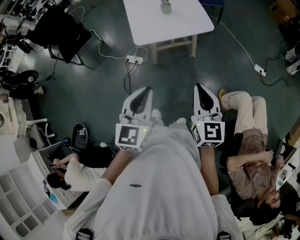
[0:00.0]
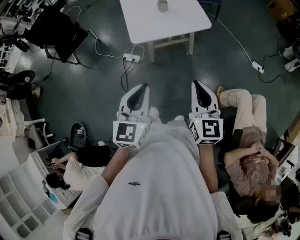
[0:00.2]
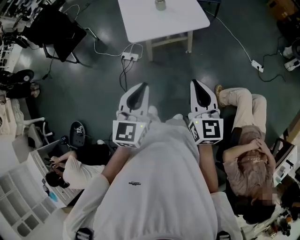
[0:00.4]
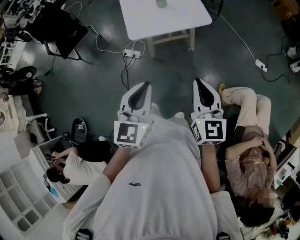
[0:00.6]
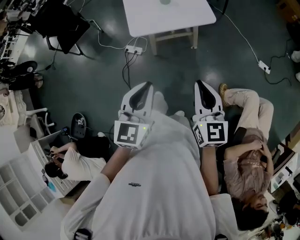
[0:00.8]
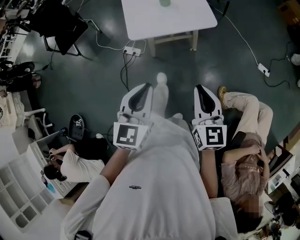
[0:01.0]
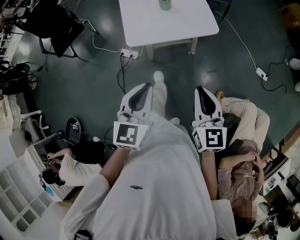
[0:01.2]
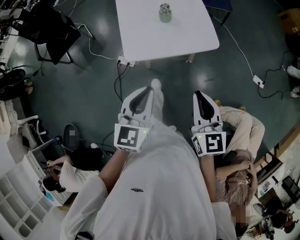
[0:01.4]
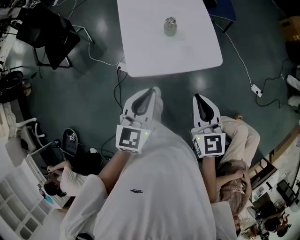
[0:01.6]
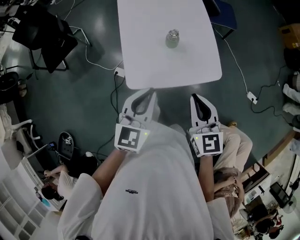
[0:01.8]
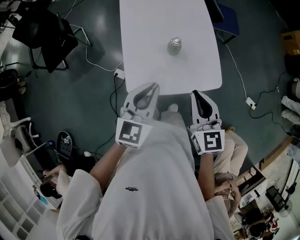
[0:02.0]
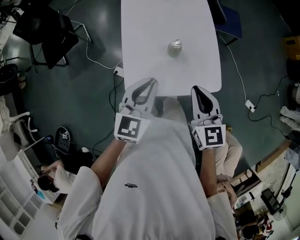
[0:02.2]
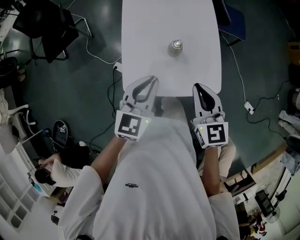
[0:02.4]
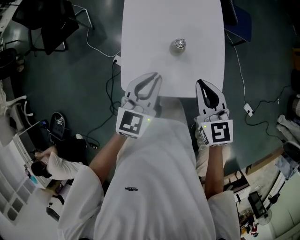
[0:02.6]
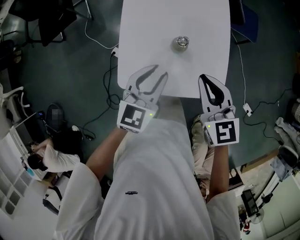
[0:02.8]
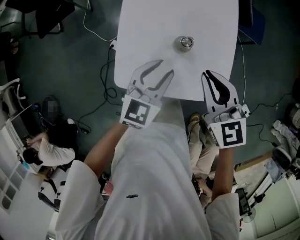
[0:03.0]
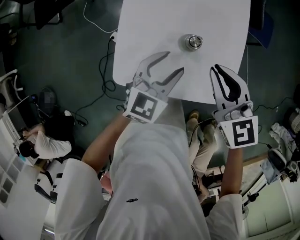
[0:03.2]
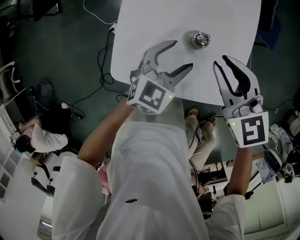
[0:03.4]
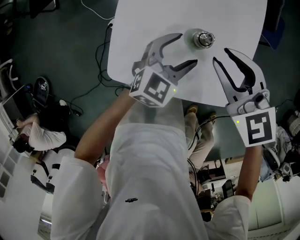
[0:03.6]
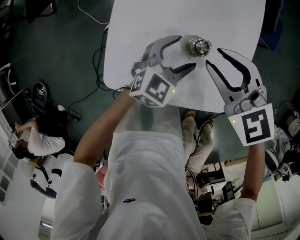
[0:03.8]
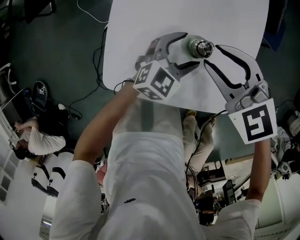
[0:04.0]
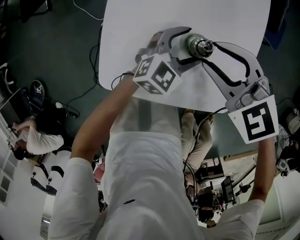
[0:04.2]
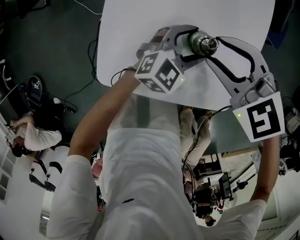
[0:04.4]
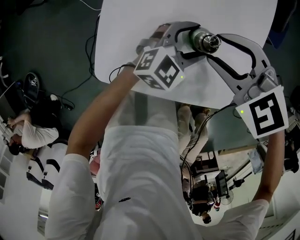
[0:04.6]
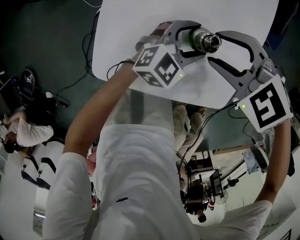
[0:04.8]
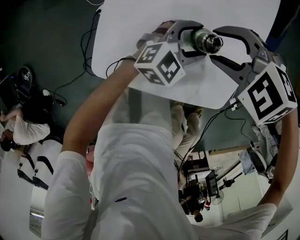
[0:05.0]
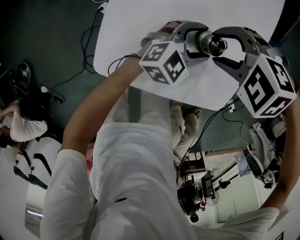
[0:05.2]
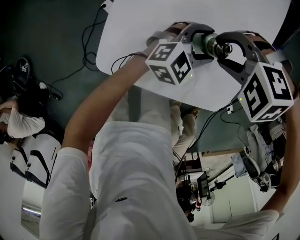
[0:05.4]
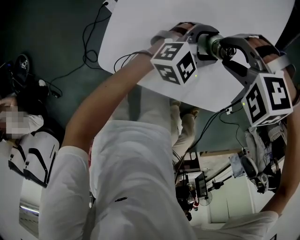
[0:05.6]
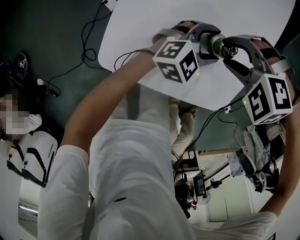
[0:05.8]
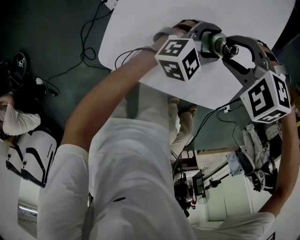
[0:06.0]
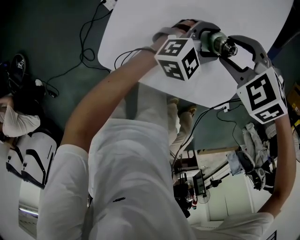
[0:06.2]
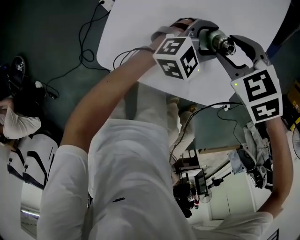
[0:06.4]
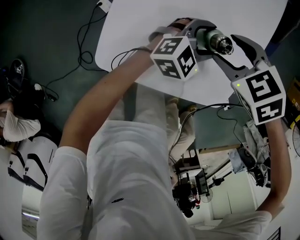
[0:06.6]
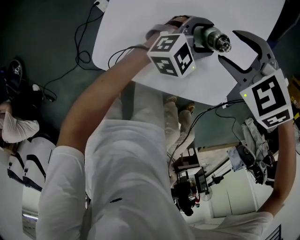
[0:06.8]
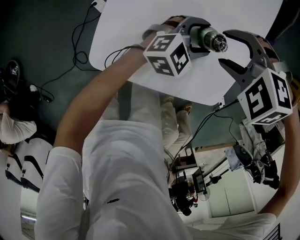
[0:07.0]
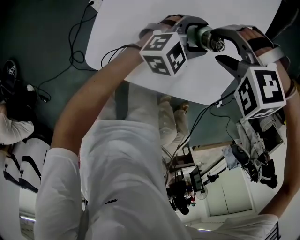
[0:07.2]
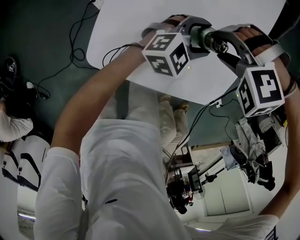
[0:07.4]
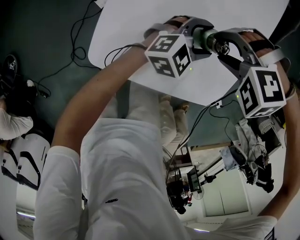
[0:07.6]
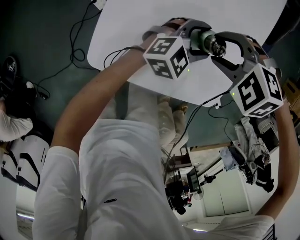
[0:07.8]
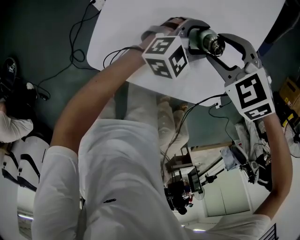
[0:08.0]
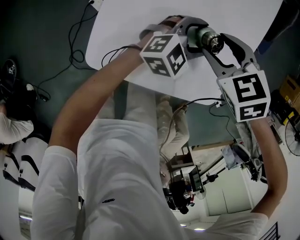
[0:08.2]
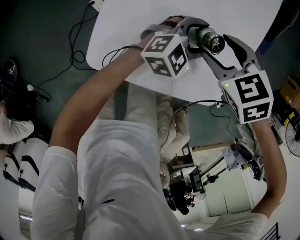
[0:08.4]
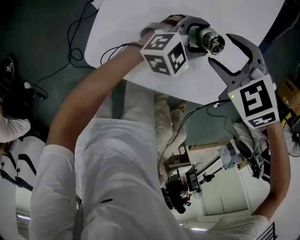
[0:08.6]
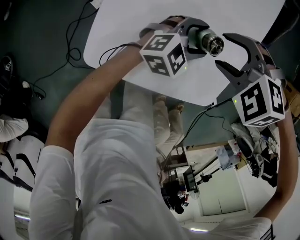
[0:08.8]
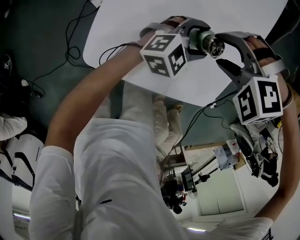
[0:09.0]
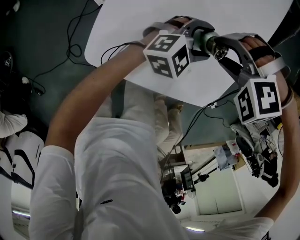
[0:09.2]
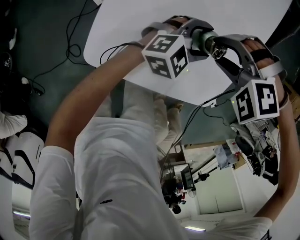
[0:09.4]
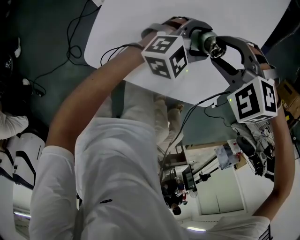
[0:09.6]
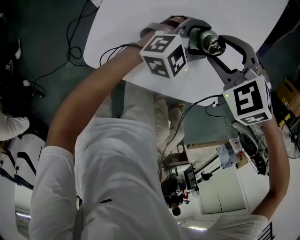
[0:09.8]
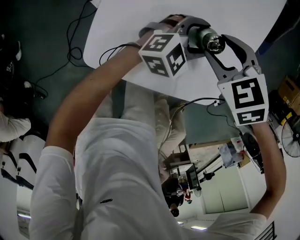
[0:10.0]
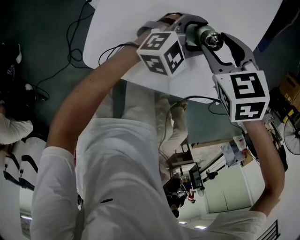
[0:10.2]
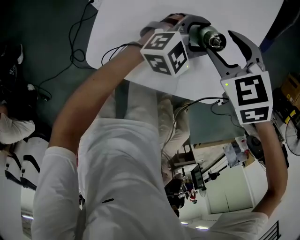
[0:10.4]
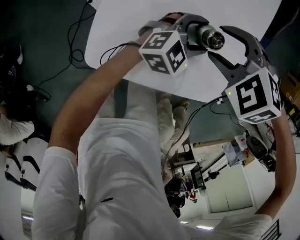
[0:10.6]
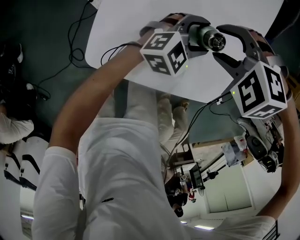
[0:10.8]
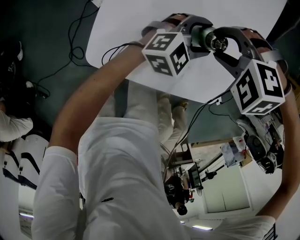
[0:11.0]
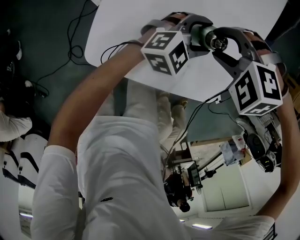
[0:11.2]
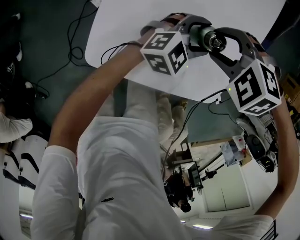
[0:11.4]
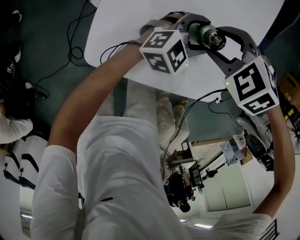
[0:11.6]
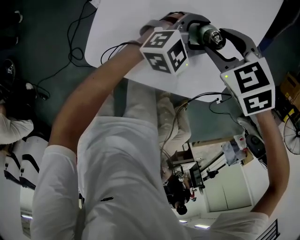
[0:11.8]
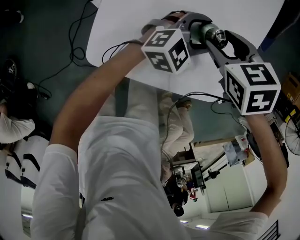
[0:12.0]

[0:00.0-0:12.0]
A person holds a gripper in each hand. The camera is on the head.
0:00.0 to 0:01.6: Both grippers move forward, about 30 cm.
0:01.6 to 0:03.0: Both grippers move forward, about 25 cm. The right gripper swivels some 30 degrees.
0:03.0 to 0:04.4: The right gripper is displaced downward and forward by roughly 15 cm, rotates approximately 40 degrees, and opens up. Meanwhile the left gripper goes approximately 20 cm downward, forward and to the right, changes its angle by approximately 20 degrees, and opens its fingers.
0:04.4 to 0:06.0: The right gripper shifts approximately 5 cm downward, and changes its angle by approximately 40 degrees.
0:06.0 to 0:07.6: The right gripper turns by about 20 degrees.
0:09.0 to 0:10.4: The right gripper twists some 60 degrees clockwise, seen from behind.

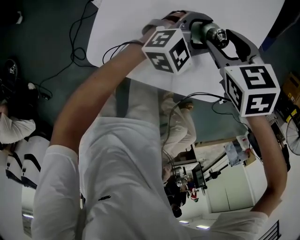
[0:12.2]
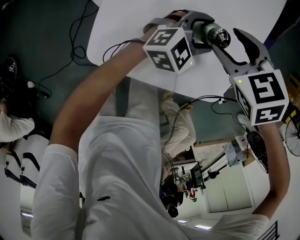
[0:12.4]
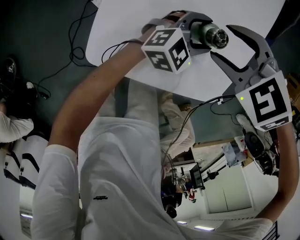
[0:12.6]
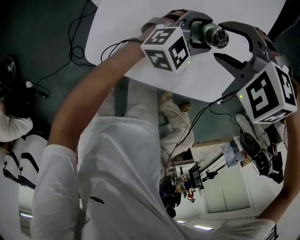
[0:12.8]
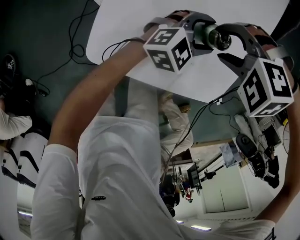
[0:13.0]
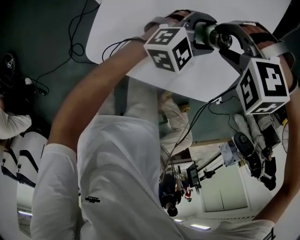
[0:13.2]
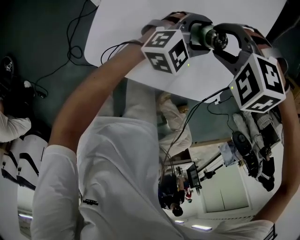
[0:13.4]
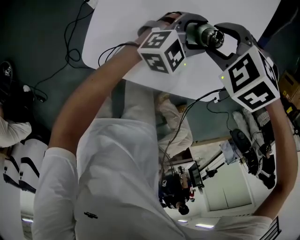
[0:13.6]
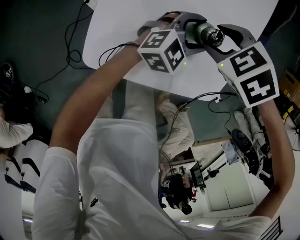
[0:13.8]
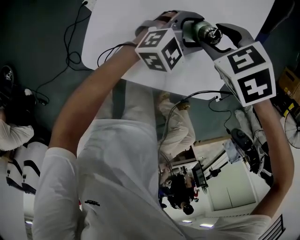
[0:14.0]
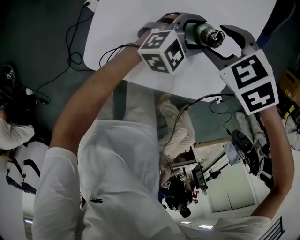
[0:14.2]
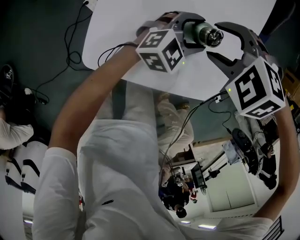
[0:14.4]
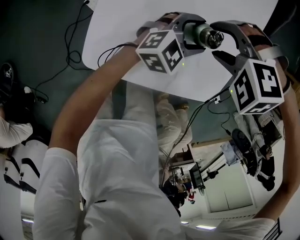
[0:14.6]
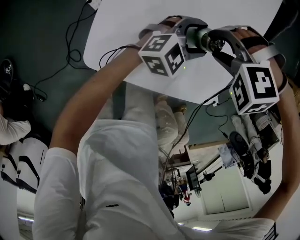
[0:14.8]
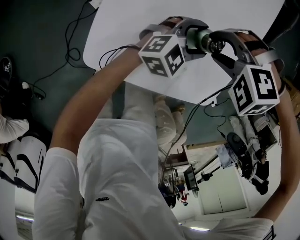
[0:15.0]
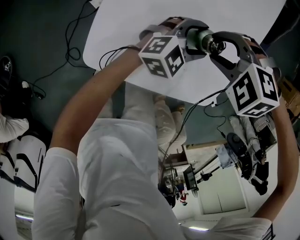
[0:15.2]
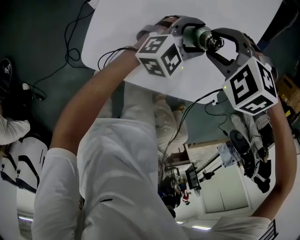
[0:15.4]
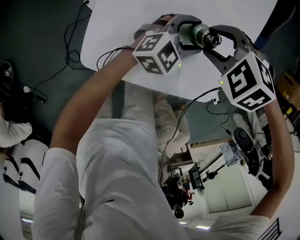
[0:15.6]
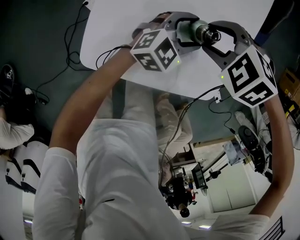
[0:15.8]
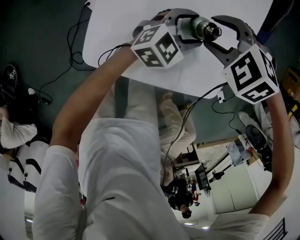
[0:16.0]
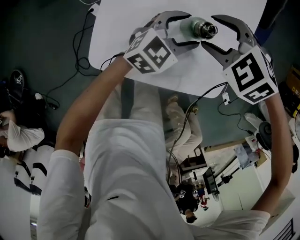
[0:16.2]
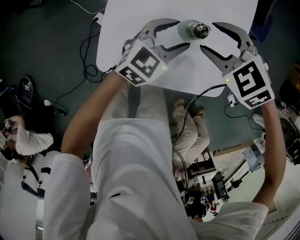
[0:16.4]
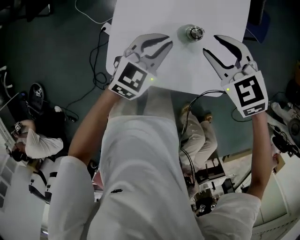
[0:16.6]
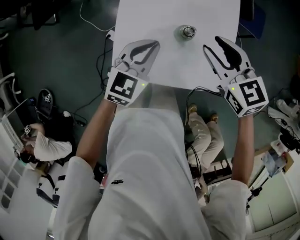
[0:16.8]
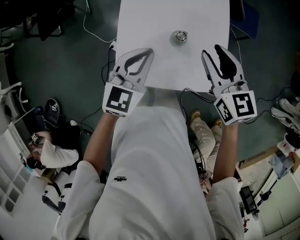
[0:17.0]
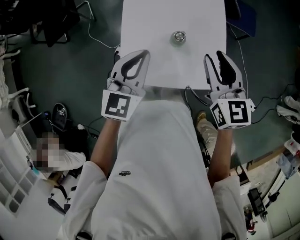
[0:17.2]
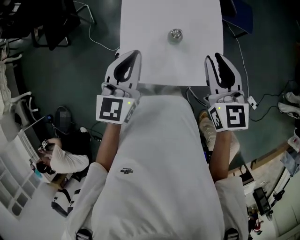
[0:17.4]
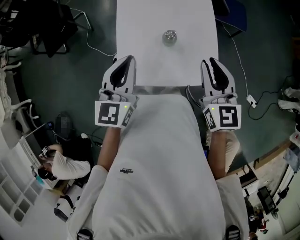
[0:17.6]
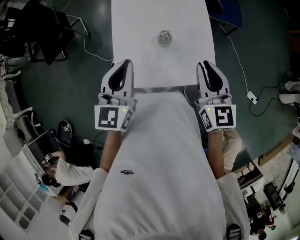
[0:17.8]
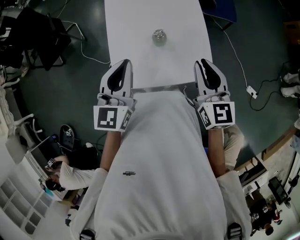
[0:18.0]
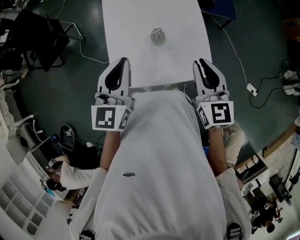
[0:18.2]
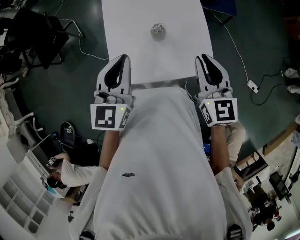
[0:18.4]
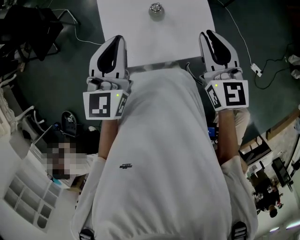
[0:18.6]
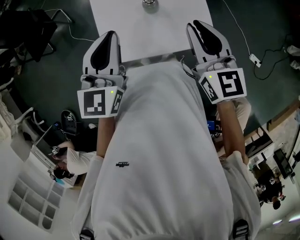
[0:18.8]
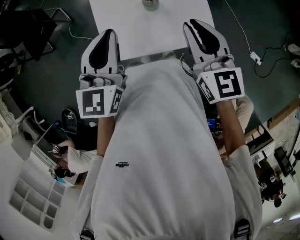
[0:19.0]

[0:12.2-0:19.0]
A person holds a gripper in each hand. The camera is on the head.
0:12.2 to 0:13.6: The right gripper changes its angle by about 40 degrees.
0:13.6 to 0:15.0: The right gripper changes its angle by some 30 degrees.
0:15.0 to 0:16.2: The right gripper rotates about 40 degrees.
0:16.2 to 0:17.6: The right gripper moves upward and backward, approximately 30 cm, tips its fingers upward by about 60 degrees, and closes, while the left gripper heads upward, to the left and backward, covering some 35 cm, swivels about 30 degrees, and closes.
0:17.6 to 0:19.0: The grippers make only small movements.

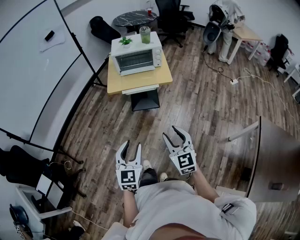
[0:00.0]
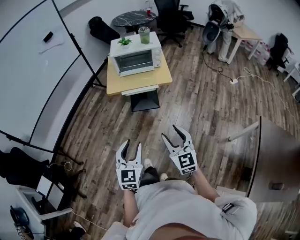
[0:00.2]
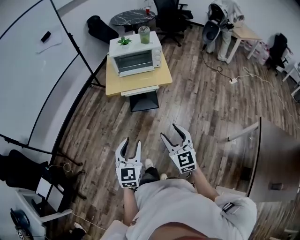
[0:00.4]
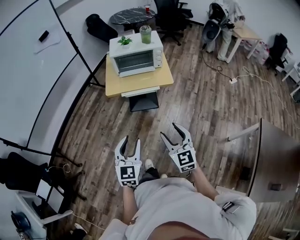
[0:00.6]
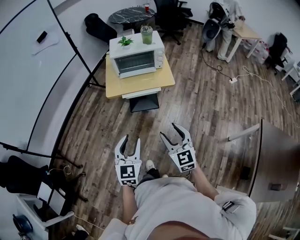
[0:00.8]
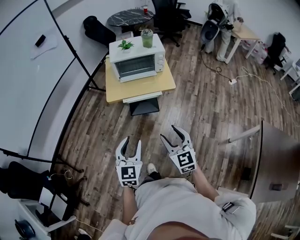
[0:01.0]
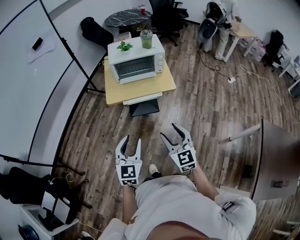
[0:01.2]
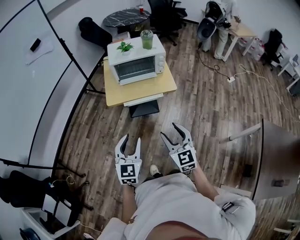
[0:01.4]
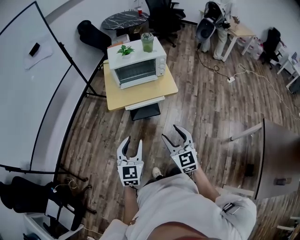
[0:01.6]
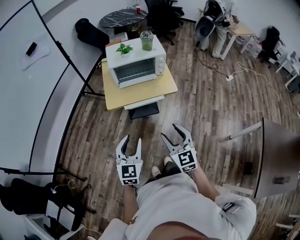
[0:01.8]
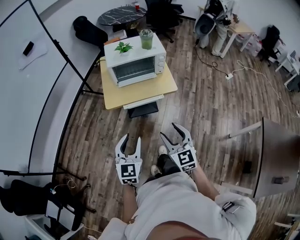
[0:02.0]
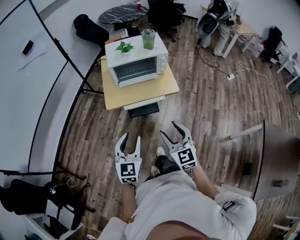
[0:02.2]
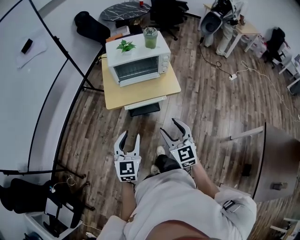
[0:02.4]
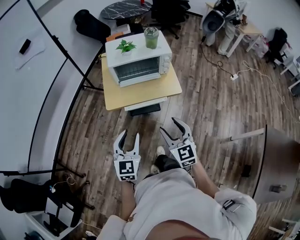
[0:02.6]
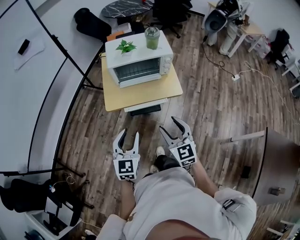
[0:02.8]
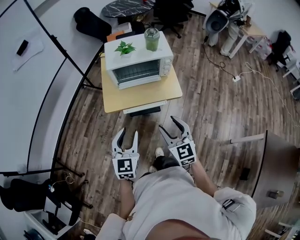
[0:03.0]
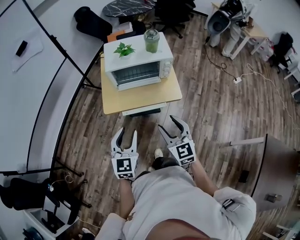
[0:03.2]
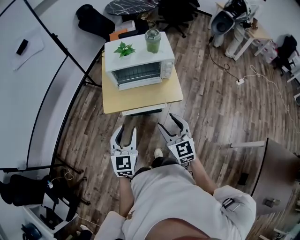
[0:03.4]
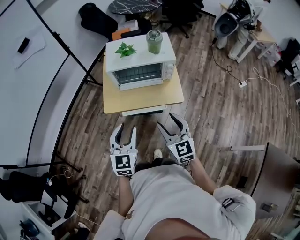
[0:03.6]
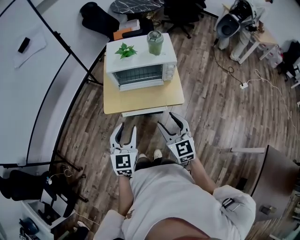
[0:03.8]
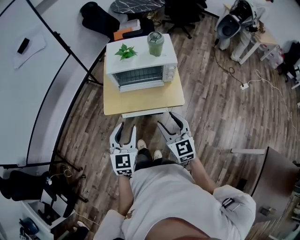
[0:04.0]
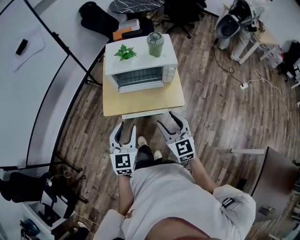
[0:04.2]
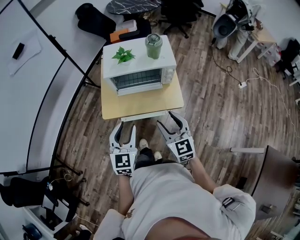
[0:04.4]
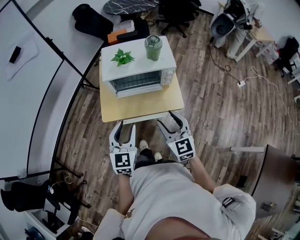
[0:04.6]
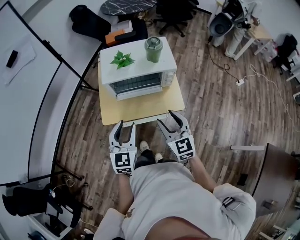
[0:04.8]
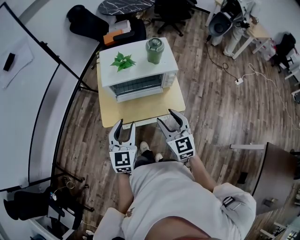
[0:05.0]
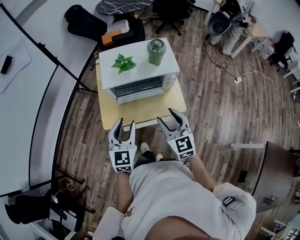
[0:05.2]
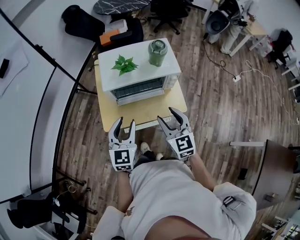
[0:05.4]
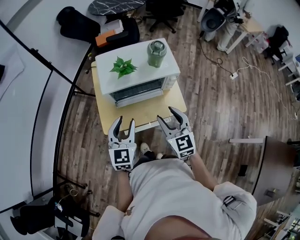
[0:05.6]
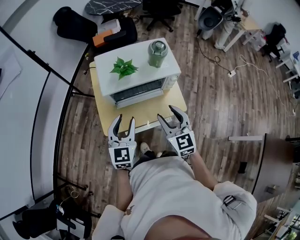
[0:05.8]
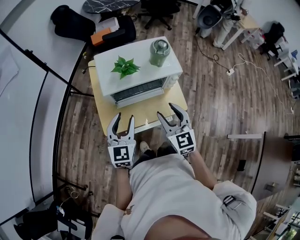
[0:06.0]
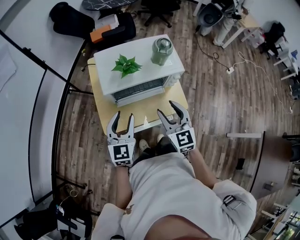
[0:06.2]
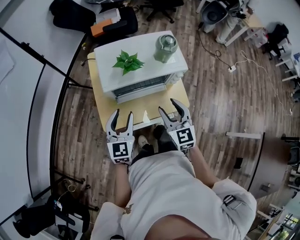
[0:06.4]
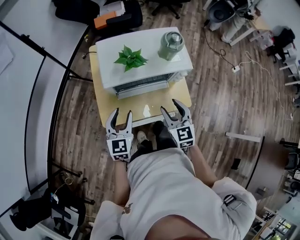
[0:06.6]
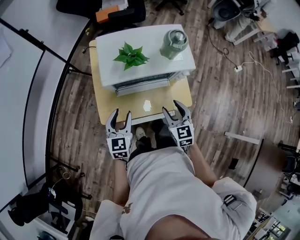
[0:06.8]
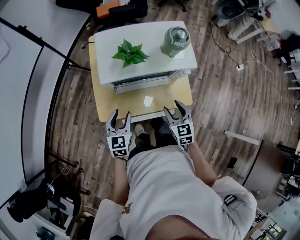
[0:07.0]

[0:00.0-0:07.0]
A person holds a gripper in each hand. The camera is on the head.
0:00.0 to 0:01.4: The right gripper goes about 15 cm forward and to the left, while the left gripper goes about 20 cm forward.
0:01.4 to 0:02.8: The two grippers go about 15 cm forward.
0:02.8 to 0:04.2: Both grippers move forward, approximately 10 cm.
0:04.2 to 0:05.6: The two grippers go about 15 cm forward.
0:05.6 to 0:07.0: The grippers both shift downward by approximately 15 cm.
